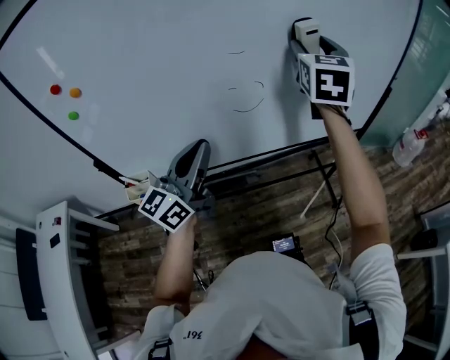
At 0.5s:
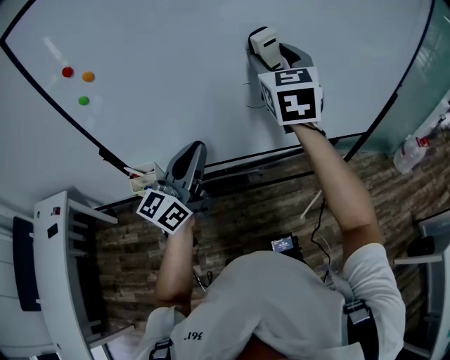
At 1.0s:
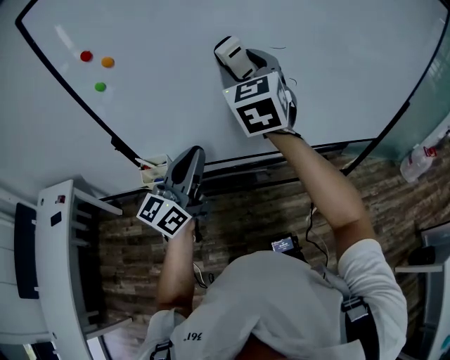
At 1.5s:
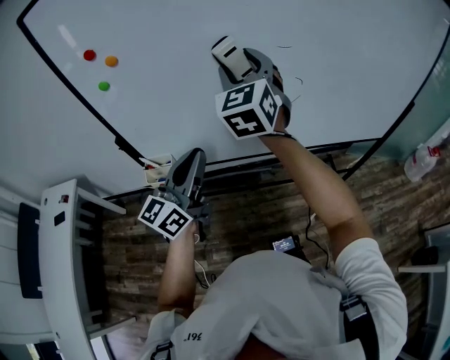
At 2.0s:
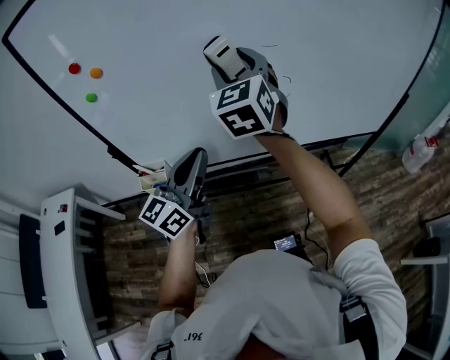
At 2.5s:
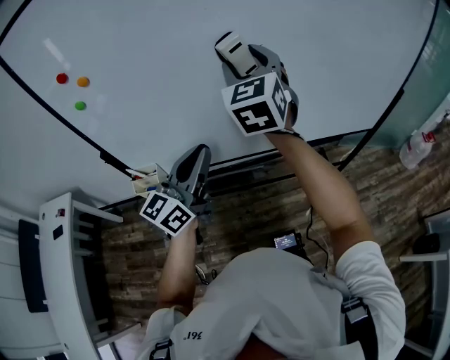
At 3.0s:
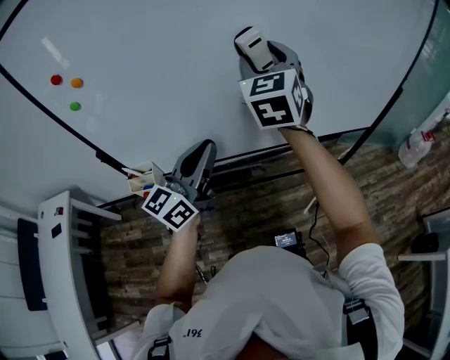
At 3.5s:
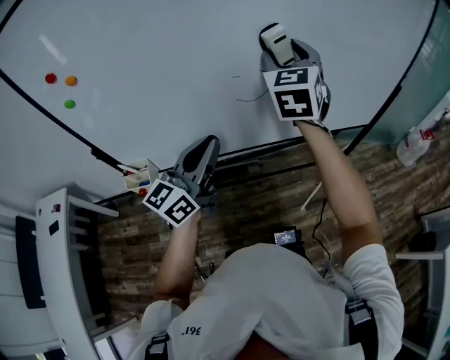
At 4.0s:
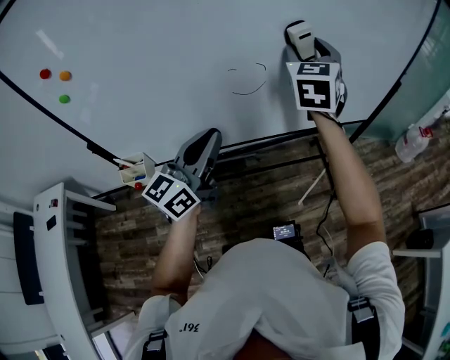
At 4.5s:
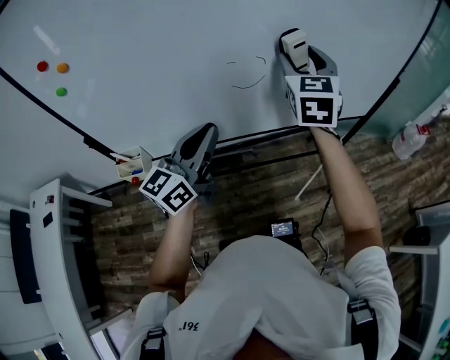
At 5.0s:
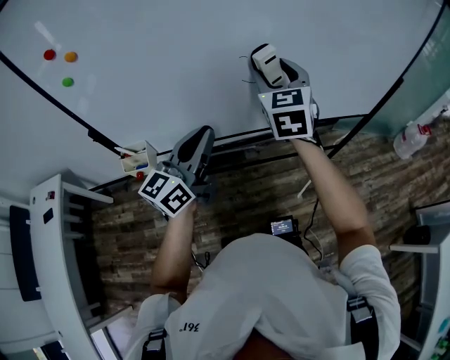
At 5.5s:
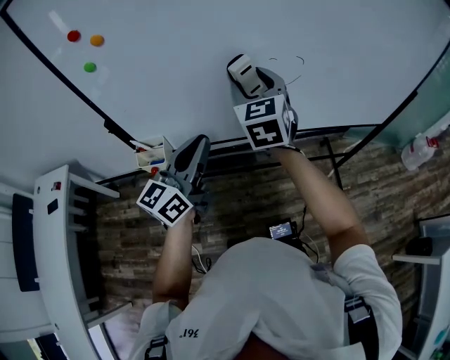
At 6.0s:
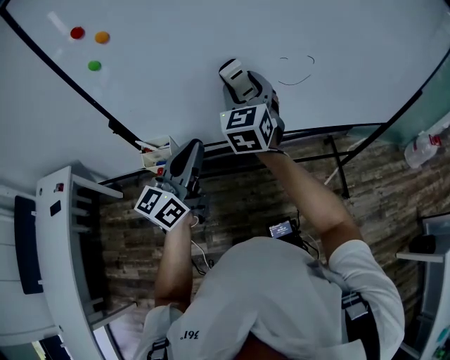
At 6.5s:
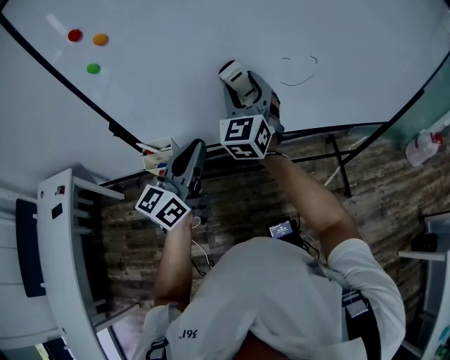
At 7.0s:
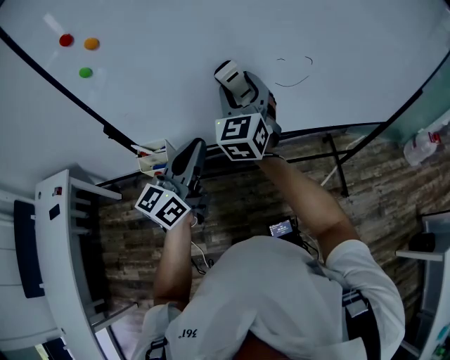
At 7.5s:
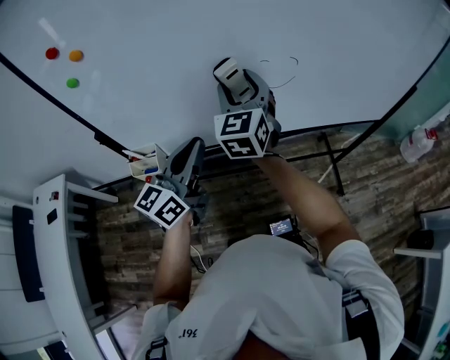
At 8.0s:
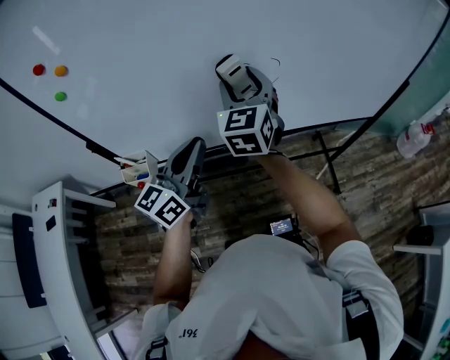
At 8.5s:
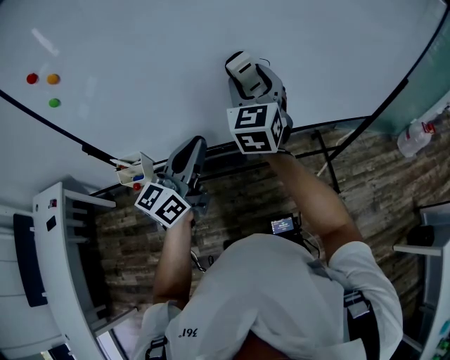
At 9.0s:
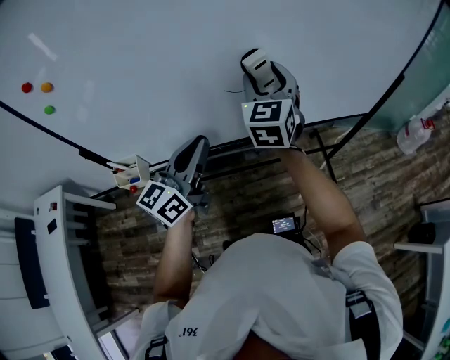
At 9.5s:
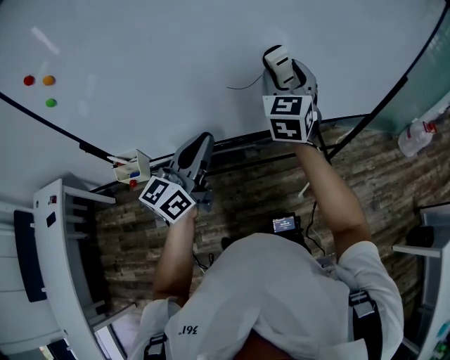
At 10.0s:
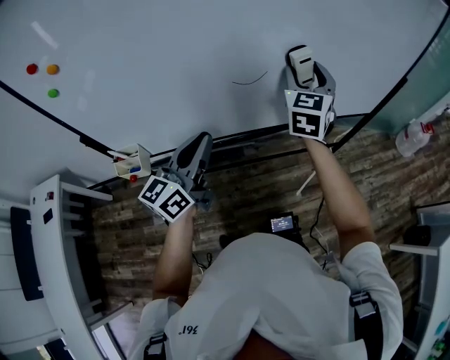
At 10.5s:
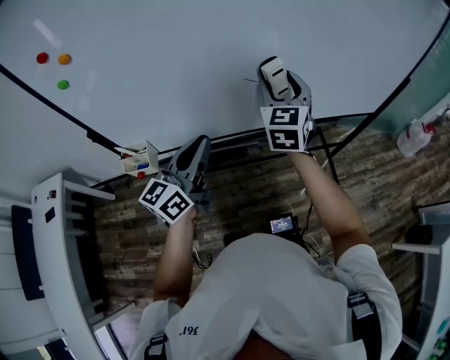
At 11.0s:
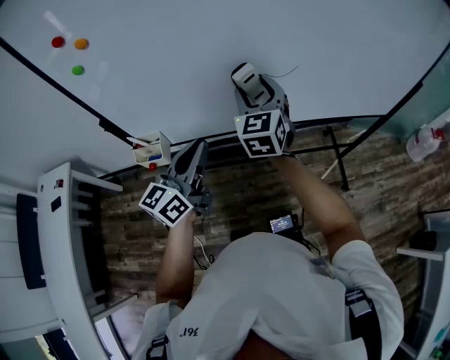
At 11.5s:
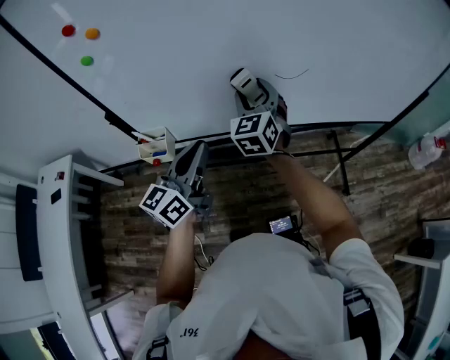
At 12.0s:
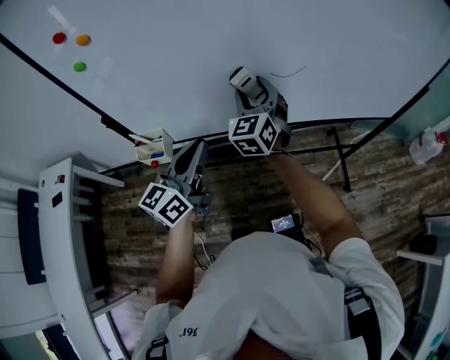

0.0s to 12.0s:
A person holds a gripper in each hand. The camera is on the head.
0.0s to 2.0s: The left gripper goes approximately 5 cm to the left, while the right gripper moves to the left, some 25 cm, and turns by about 20 degrees.
2.0s to 4.0s: The right gripper shifts some 25 cm to the right and forward; the left gripper goes approximately 10 cm to the right.
4.0s to 6.0s: The right gripper goes approximately 30 cm to the left, downward and backward, while the left gripper heads to the left and backward, covering about 15 cm.
6.0s to 8.0s: The right gripper travels to the right by about 10 cm. The left gripper shifts approximately 10 cm to the right and forward.
8.0s to 10.0s: The right gripper is displaced to the right by about 20 cm.
10.0s to 12.0s: The left gripper is displaced to the left by some 10 cm, while the right gripper goes approximately 25 cm to the left.

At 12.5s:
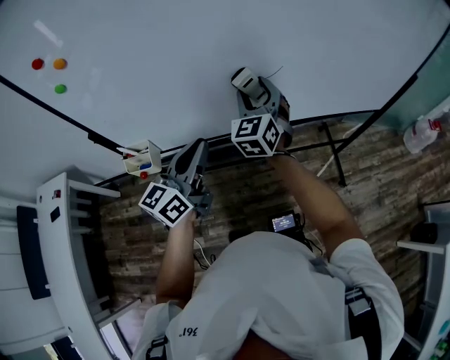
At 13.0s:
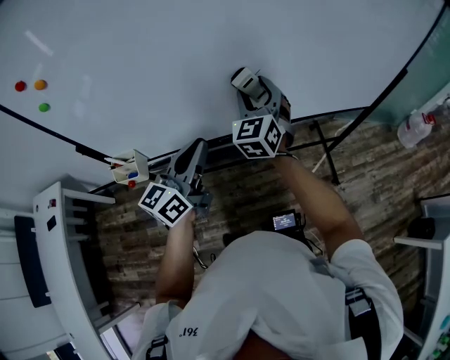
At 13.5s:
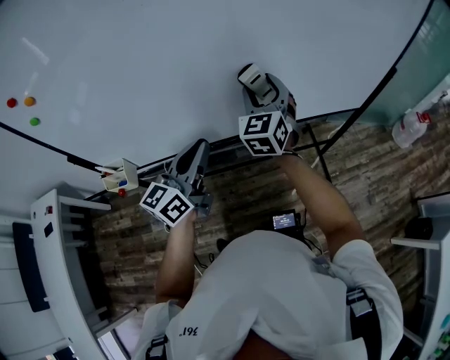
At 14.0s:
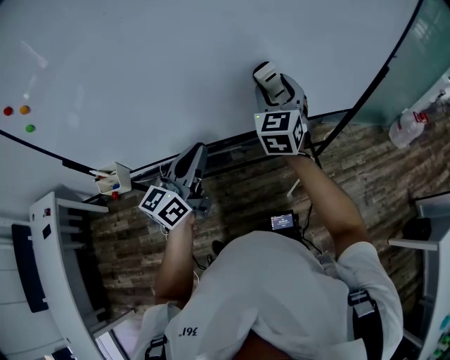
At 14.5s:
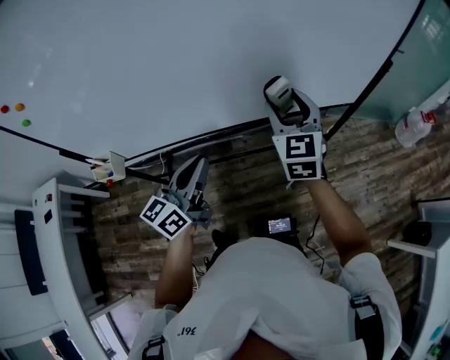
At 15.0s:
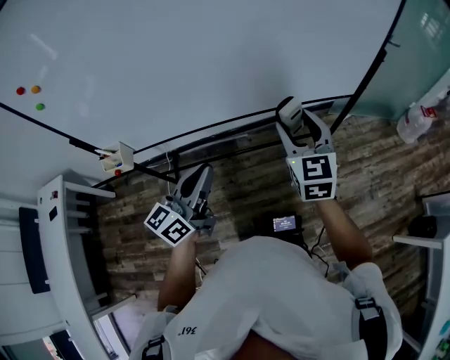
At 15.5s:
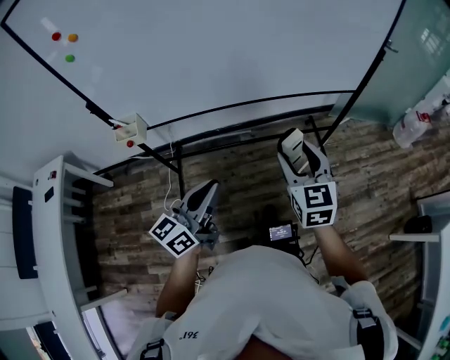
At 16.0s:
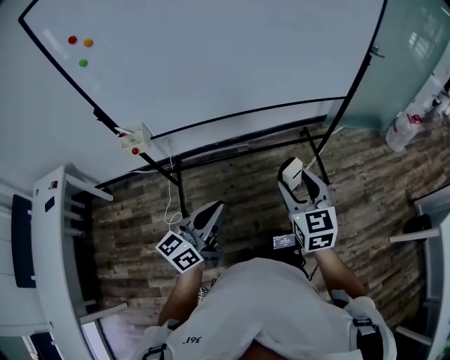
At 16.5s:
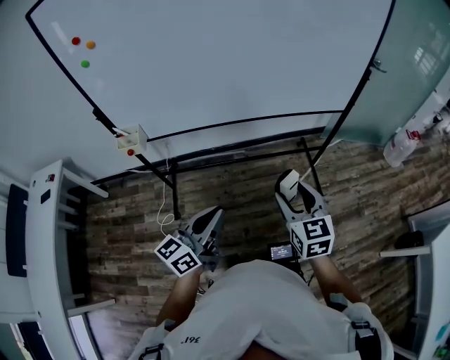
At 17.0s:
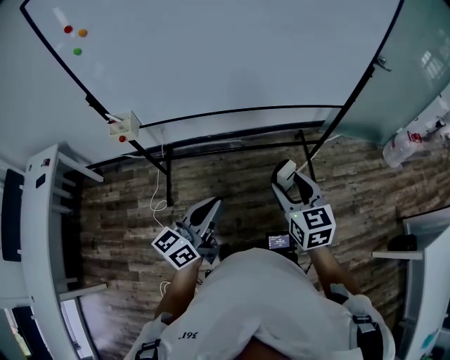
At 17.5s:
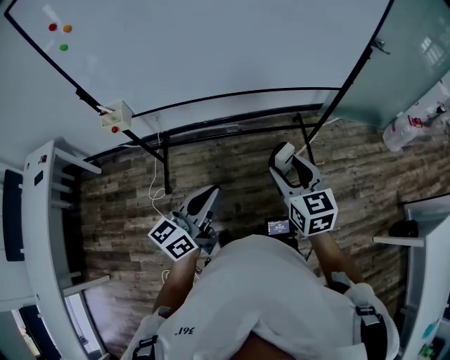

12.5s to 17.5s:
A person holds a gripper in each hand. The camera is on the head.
12.5s to 15.0s: The right gripper goes approximately 30 cm to the right; the left gripper shifts approximately 20 cm to the right.
15.0s to 17.5s: The grippers both shift backward by about 20 cm.

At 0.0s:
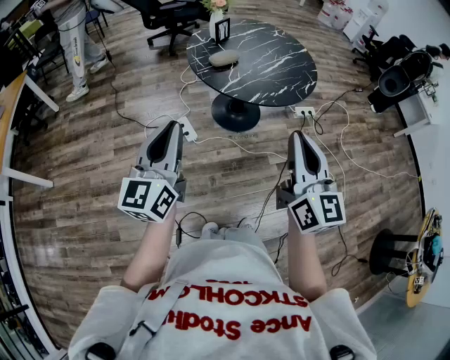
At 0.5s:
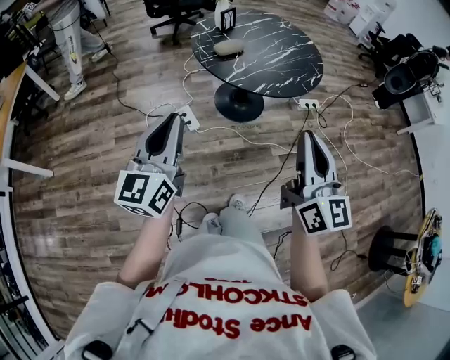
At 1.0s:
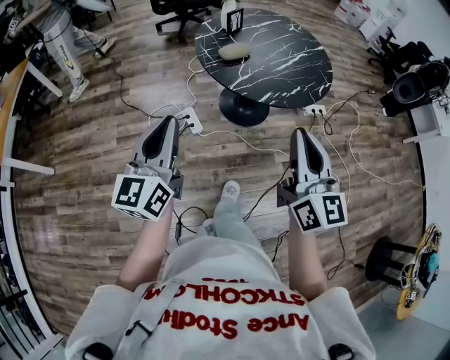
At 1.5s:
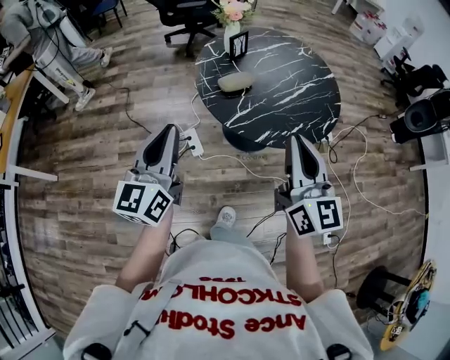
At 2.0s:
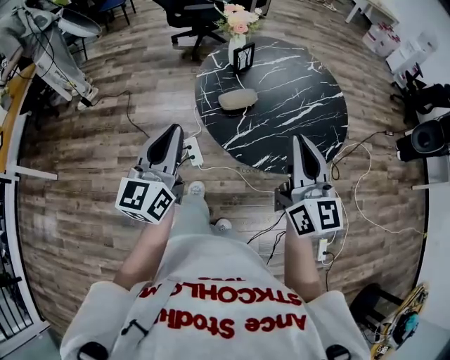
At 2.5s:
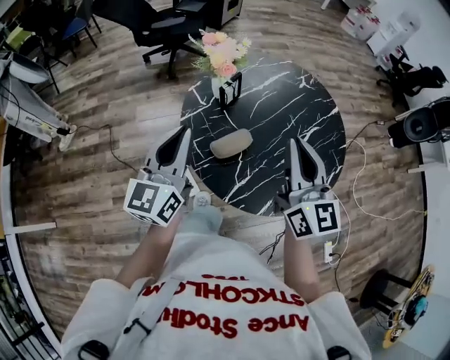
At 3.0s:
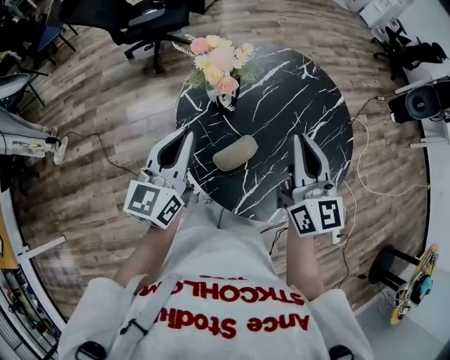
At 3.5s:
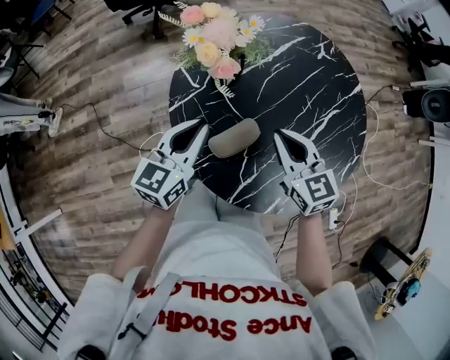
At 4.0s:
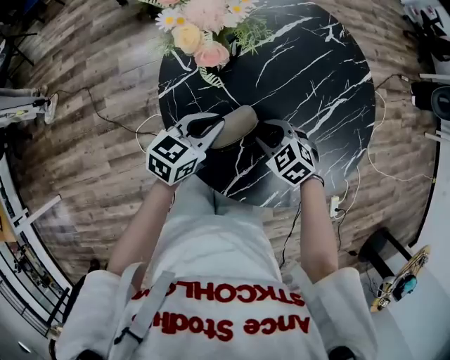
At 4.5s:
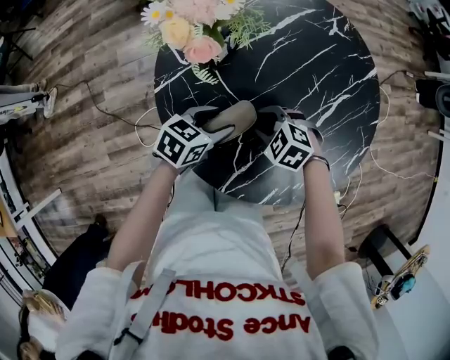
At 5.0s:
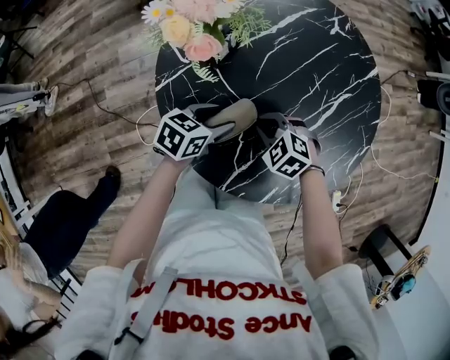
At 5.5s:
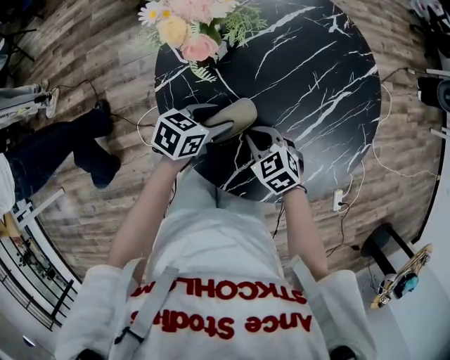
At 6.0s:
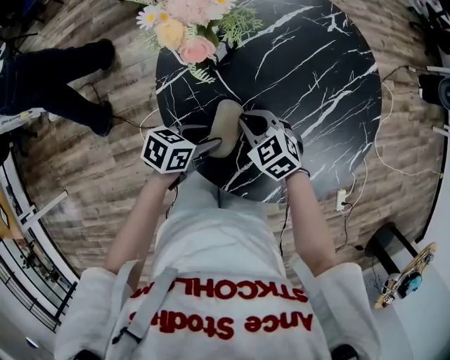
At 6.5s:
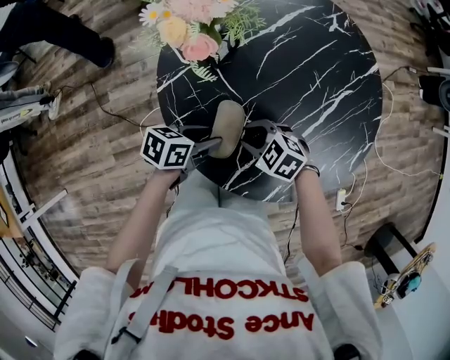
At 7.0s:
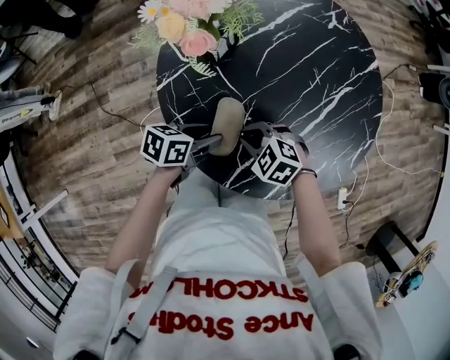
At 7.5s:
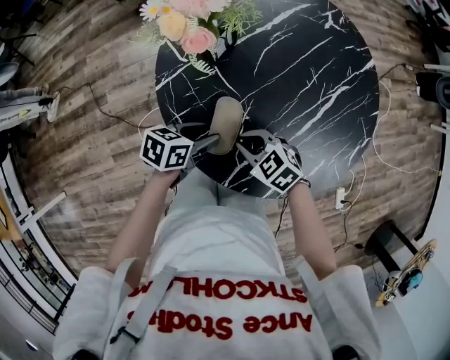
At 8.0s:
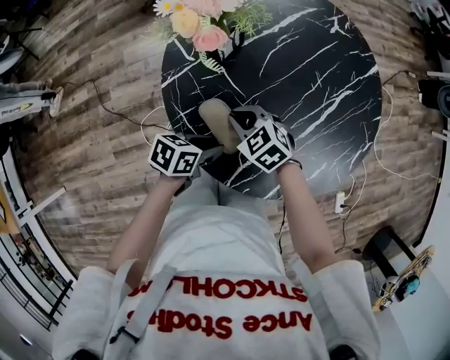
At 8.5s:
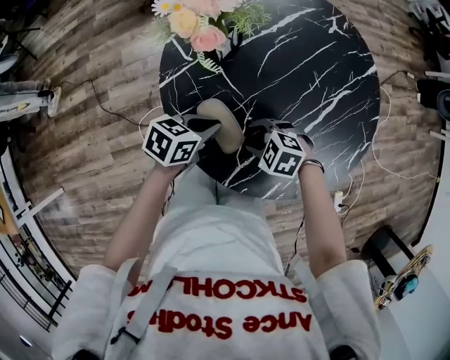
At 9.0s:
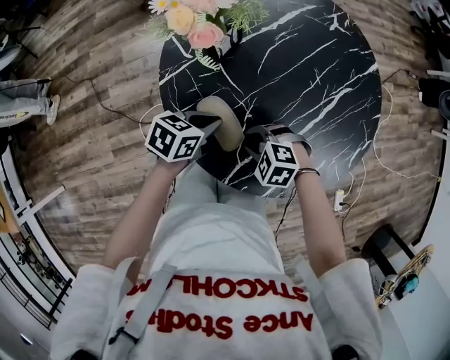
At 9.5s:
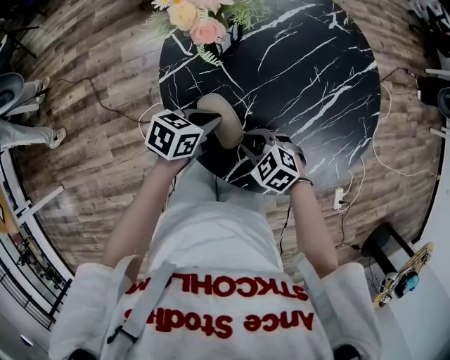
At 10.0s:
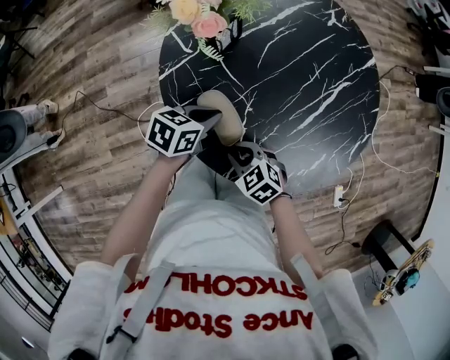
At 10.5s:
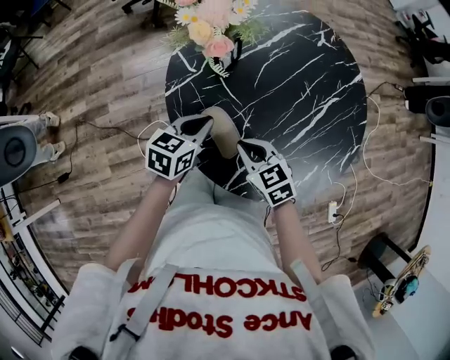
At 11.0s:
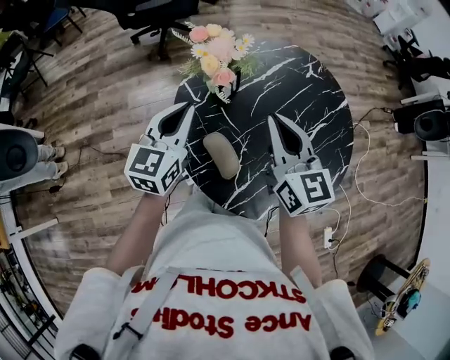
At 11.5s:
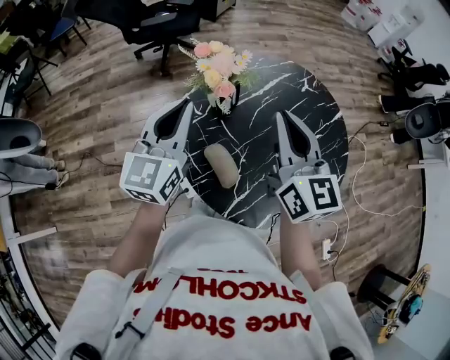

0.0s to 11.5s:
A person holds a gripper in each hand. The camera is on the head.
0.0s to 2.0s: The two grippers go approximately 30 cm forward.
2.0s to 4.0s: The left gripper goes approximately 40 cm forward and downward, and points its fingers about 30 degrees further downward; the right gripper goes approximately 50 cm downward and forward, tips its fingers downward by some 60 degrees, and opens up.
4.0s to 6.0s: The left gripper shifts about 5 cm downward, changes its angle by approximately 30 degrees, and opens up; the right gripper shifts by about 5 cm, and closes its fingers.
6.0s to 7.5s: The right gripper shifts by roughly 10 cm.
7.5s to 9.5s: The left gripper closes up.
9.5s to 11.5s: Both grippers travel together upward, about 35 cm. The right gripper points its fingers some 60 degrees further upward, while the left gripper points its fingers approximately 40 degrees further upward.
